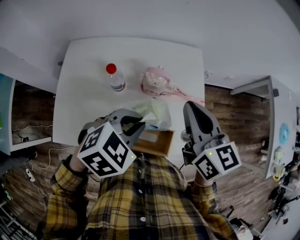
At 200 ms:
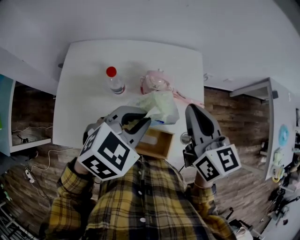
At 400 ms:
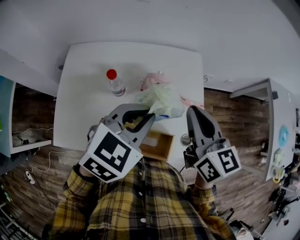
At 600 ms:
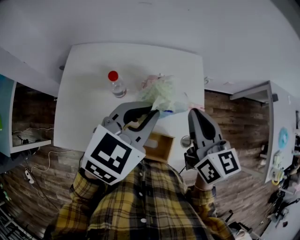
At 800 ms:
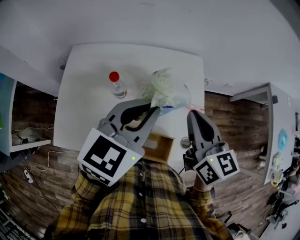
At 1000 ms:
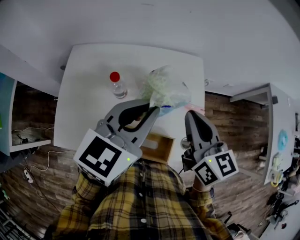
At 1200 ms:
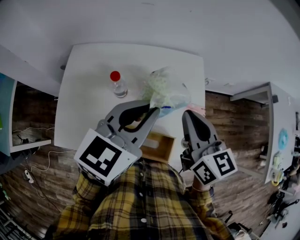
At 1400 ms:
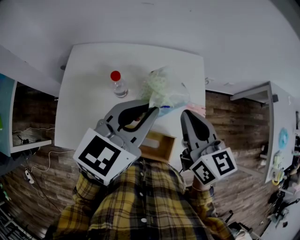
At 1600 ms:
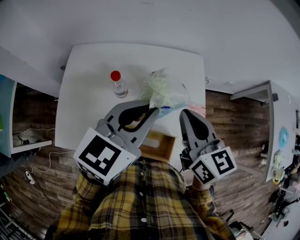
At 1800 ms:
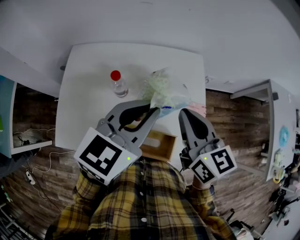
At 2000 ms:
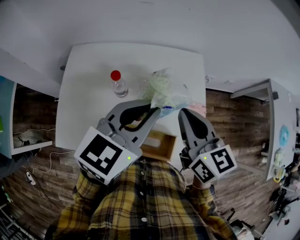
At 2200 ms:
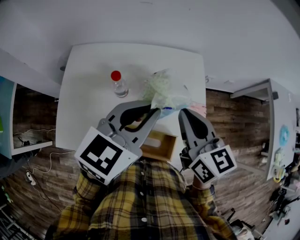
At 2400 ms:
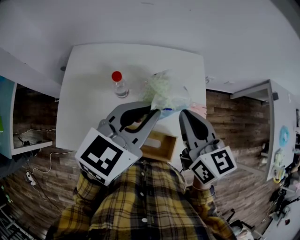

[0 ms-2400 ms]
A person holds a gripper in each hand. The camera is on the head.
0 ms to 1200 ms: The left gripper shifts approximately 10 cm upward and forward, and angles its fingers upward, by approximately 30 degrees.
1200 ms to 2400 ms: There are only small adjustments of the grippers.

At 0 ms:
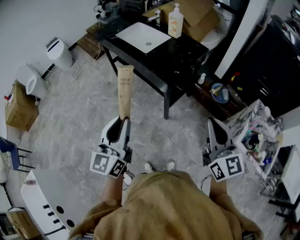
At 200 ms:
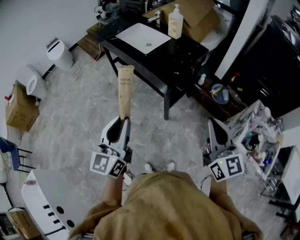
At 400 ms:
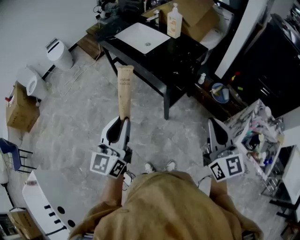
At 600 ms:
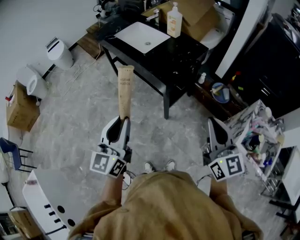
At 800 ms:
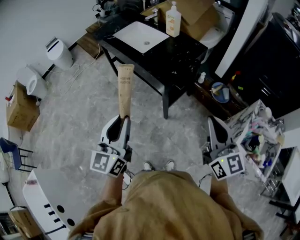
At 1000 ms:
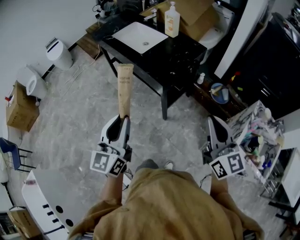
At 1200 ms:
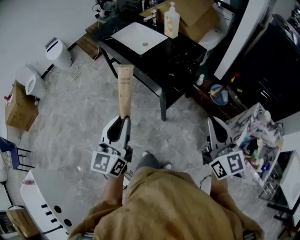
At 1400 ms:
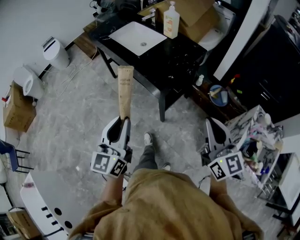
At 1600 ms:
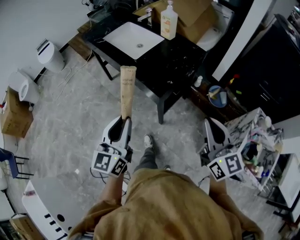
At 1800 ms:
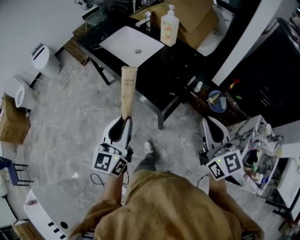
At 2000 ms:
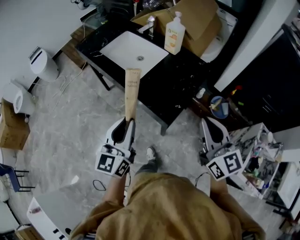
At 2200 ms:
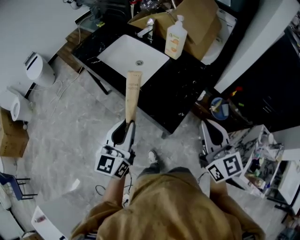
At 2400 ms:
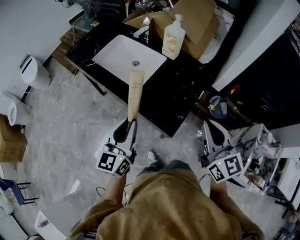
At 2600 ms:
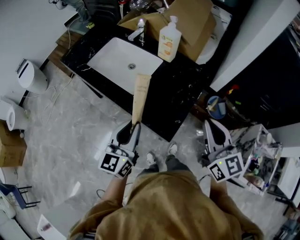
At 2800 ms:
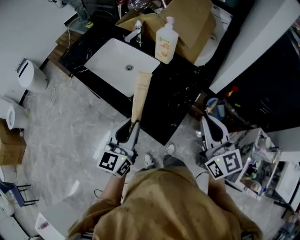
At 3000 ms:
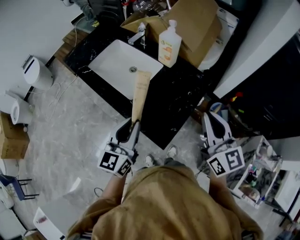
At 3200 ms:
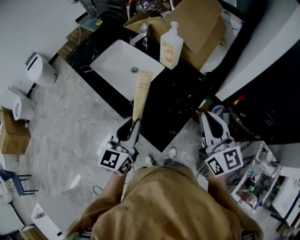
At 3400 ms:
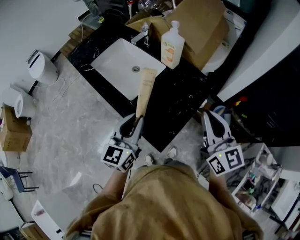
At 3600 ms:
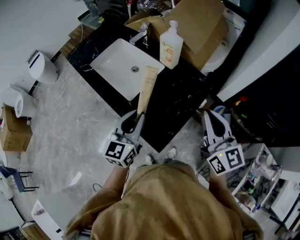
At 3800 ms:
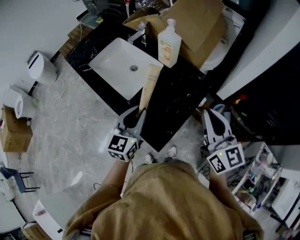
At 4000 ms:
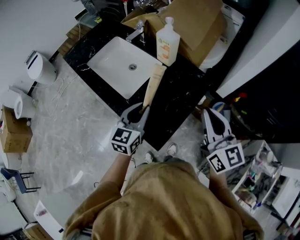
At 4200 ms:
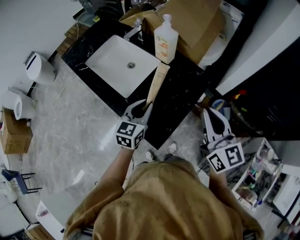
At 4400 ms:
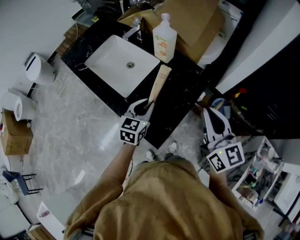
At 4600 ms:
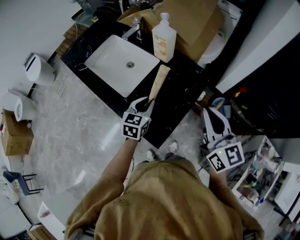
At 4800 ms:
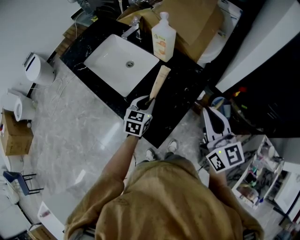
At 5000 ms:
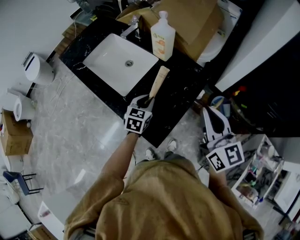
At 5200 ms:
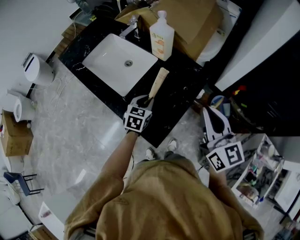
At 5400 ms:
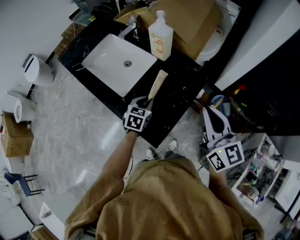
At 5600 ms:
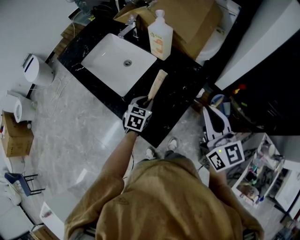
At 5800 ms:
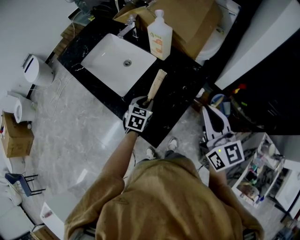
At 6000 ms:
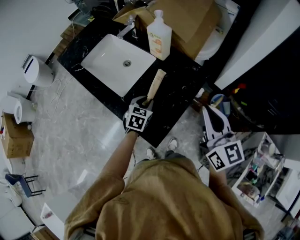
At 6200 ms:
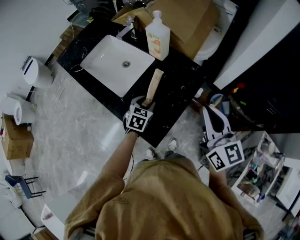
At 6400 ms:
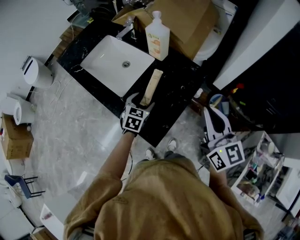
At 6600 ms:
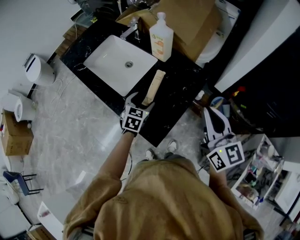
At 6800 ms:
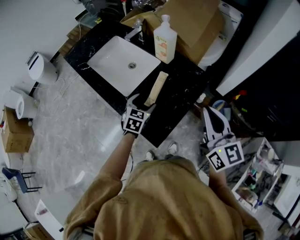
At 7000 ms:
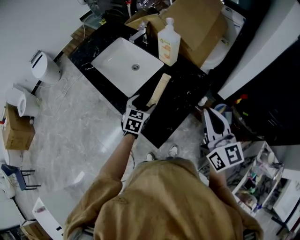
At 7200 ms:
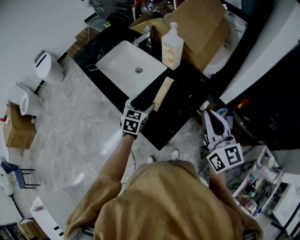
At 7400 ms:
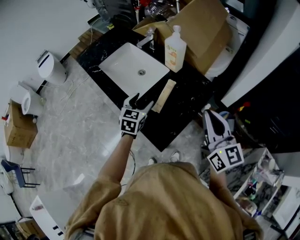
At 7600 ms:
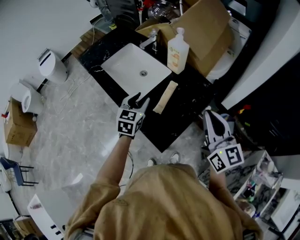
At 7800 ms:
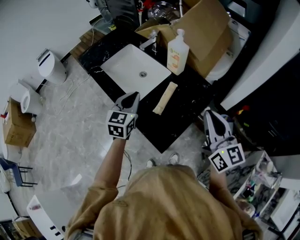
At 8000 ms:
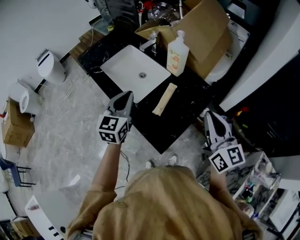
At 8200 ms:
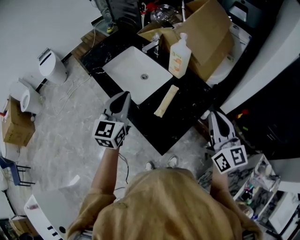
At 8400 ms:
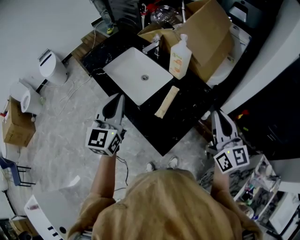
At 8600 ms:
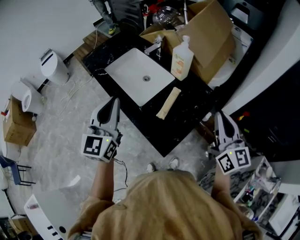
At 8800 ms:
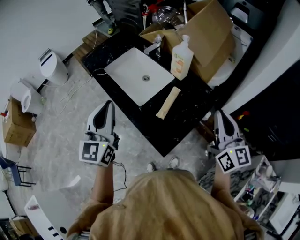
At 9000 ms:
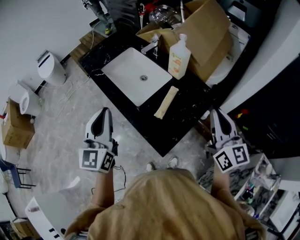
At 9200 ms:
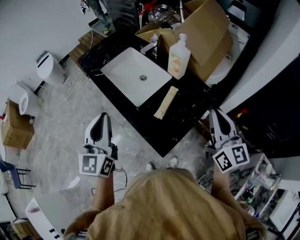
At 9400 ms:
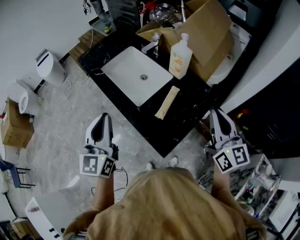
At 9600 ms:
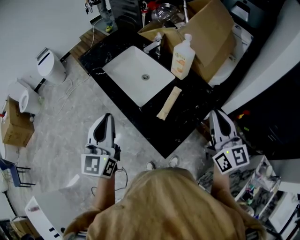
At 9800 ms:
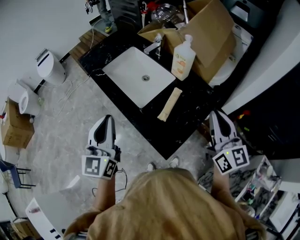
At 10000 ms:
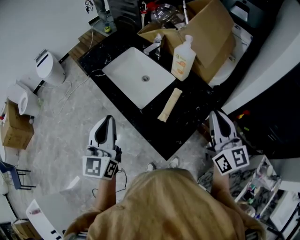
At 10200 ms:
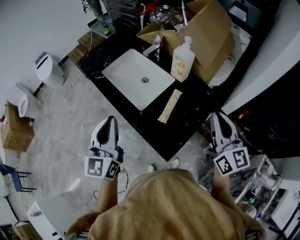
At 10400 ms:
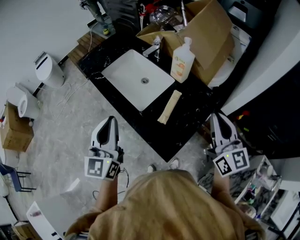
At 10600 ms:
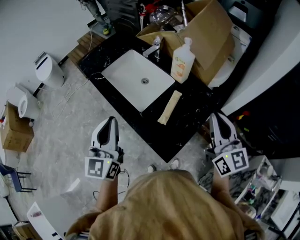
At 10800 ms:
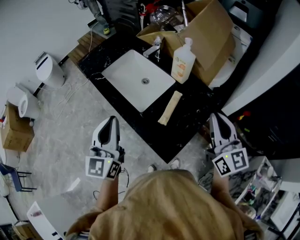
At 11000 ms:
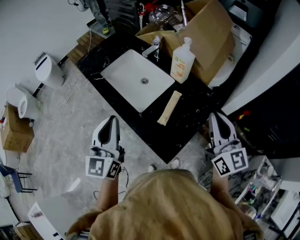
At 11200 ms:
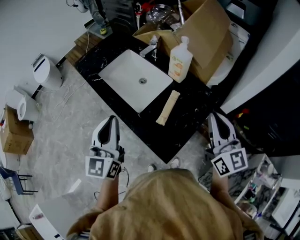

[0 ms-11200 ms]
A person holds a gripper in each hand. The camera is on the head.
0 ms to 1600 ms: The grippers both shift forward by roughly 15 cm.
1600 ms to 3200 ms: The two grippers go approximately 35 cm forward.
3200 ms to 4800 ms: The left gripper shifts about 20 cm downward, forward and to the right, and changes its angle by some 30 degrees.
4800 ms to 6400 ms: The left gripper opens.
6400 ms to 8000 ms: The left gripper travels upward and to the left by roughly 25 cm, turns by some 30 degrees, and closes up. Meanwhile the right gripper shifts by about 5 cm.
8000 ms to 9600 ms: The left gripper is displaced to the left, backward and upward by about 15 cm.
9600 ms to 11200 ms: The grippers stay close to where they were, moving slightly.

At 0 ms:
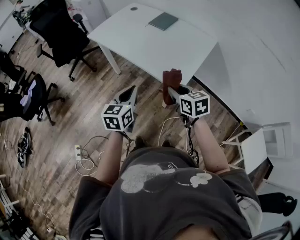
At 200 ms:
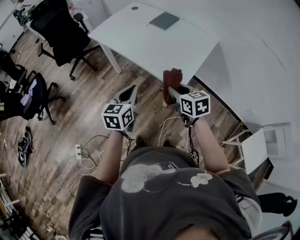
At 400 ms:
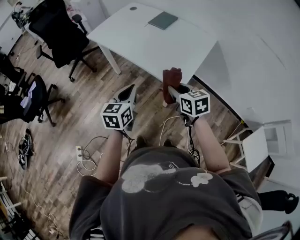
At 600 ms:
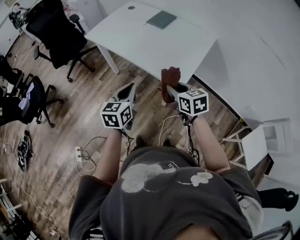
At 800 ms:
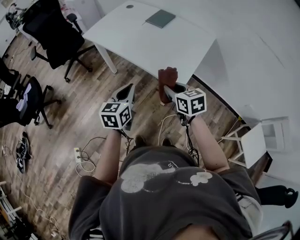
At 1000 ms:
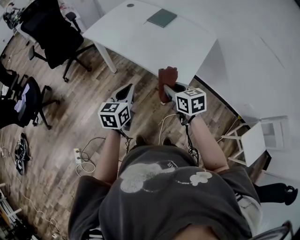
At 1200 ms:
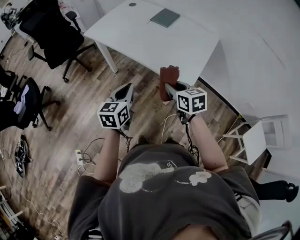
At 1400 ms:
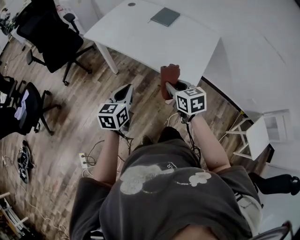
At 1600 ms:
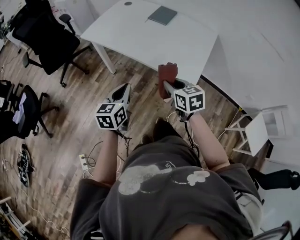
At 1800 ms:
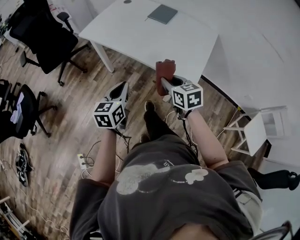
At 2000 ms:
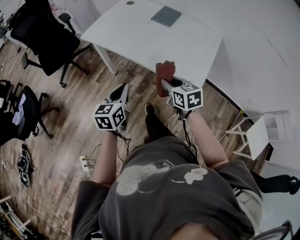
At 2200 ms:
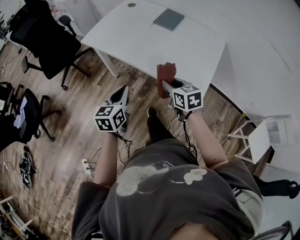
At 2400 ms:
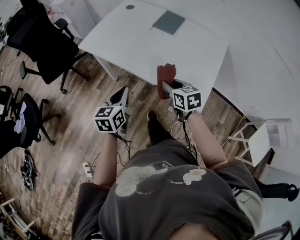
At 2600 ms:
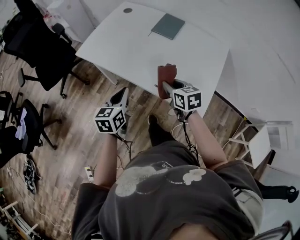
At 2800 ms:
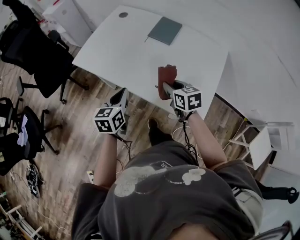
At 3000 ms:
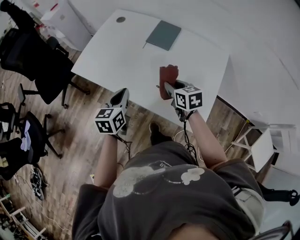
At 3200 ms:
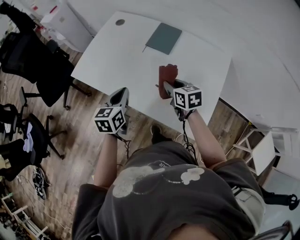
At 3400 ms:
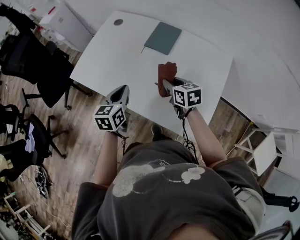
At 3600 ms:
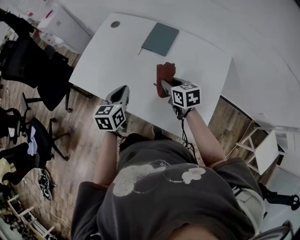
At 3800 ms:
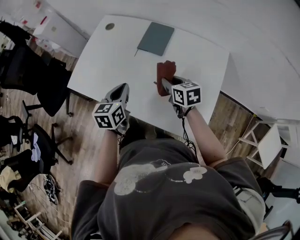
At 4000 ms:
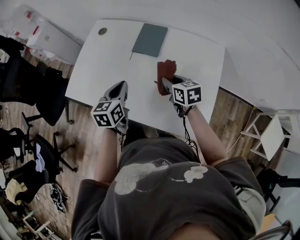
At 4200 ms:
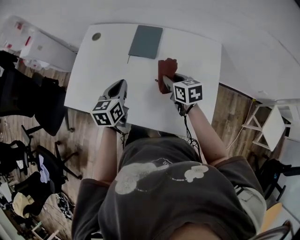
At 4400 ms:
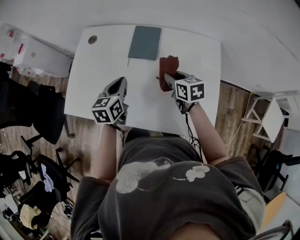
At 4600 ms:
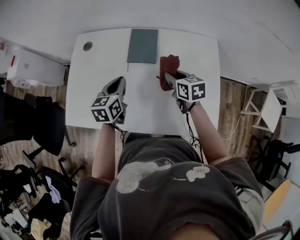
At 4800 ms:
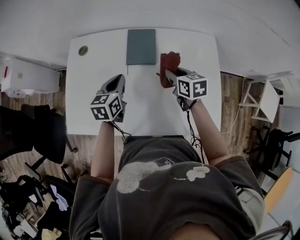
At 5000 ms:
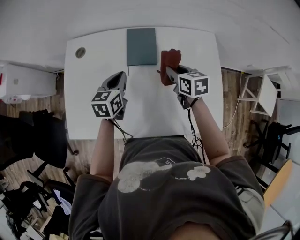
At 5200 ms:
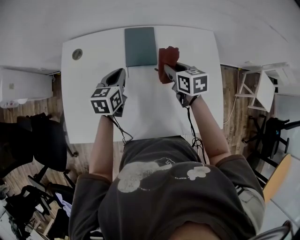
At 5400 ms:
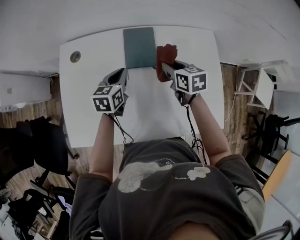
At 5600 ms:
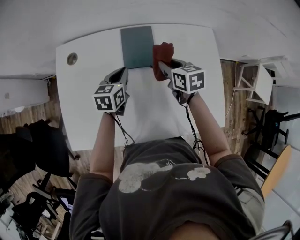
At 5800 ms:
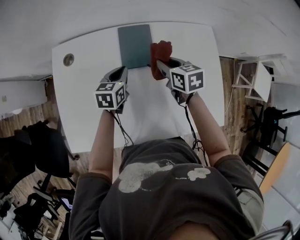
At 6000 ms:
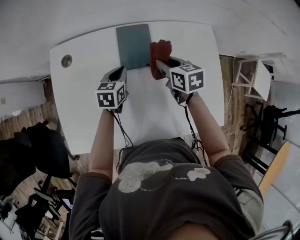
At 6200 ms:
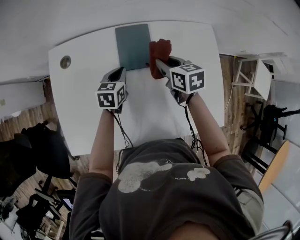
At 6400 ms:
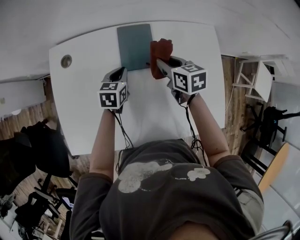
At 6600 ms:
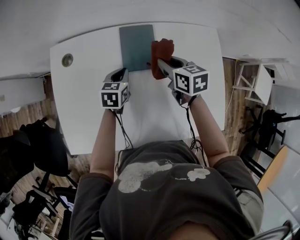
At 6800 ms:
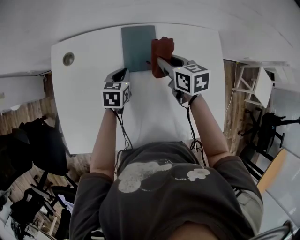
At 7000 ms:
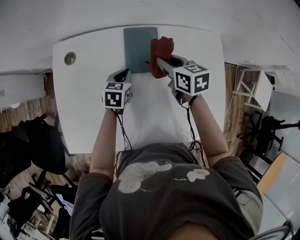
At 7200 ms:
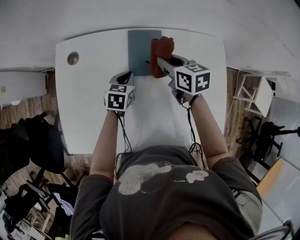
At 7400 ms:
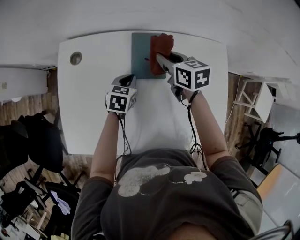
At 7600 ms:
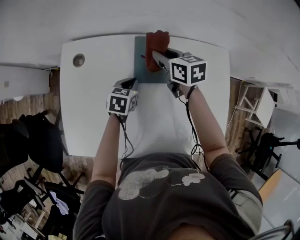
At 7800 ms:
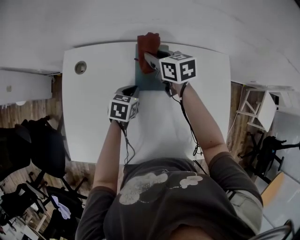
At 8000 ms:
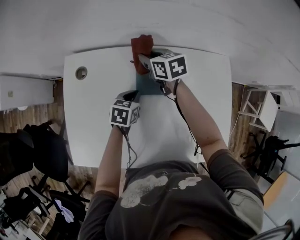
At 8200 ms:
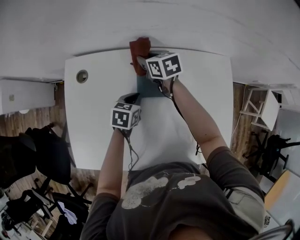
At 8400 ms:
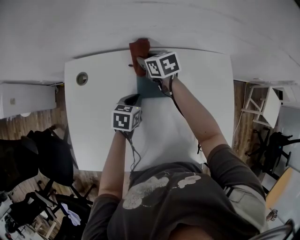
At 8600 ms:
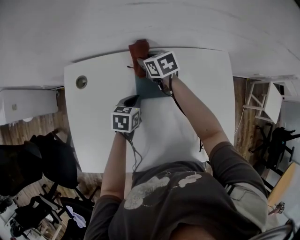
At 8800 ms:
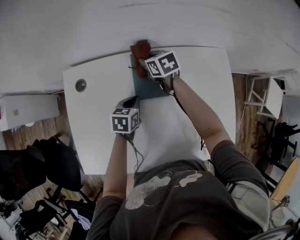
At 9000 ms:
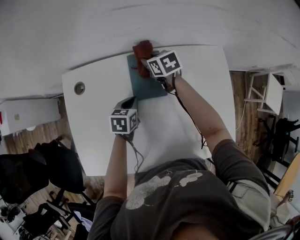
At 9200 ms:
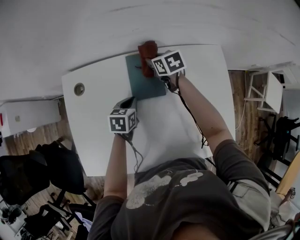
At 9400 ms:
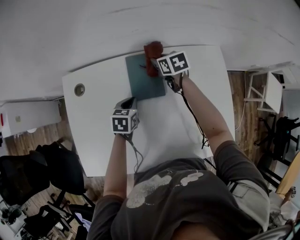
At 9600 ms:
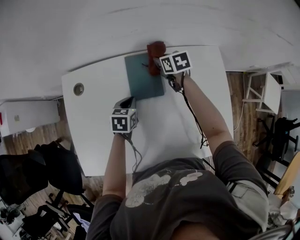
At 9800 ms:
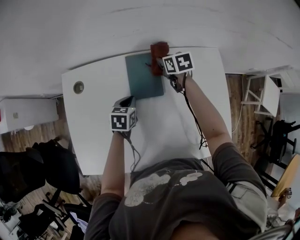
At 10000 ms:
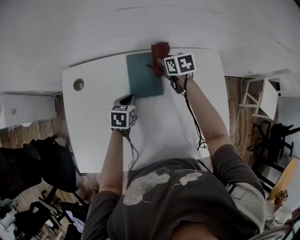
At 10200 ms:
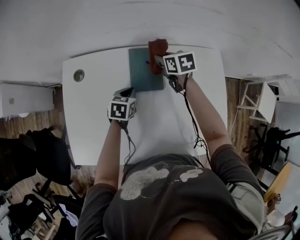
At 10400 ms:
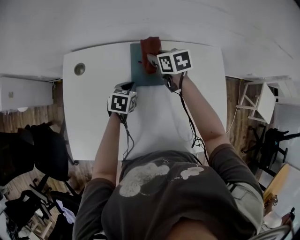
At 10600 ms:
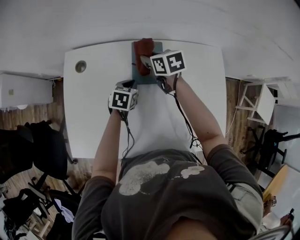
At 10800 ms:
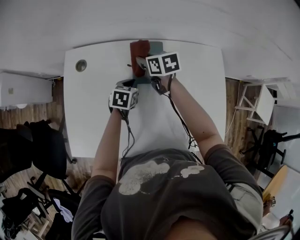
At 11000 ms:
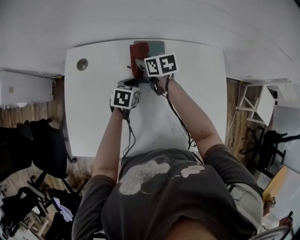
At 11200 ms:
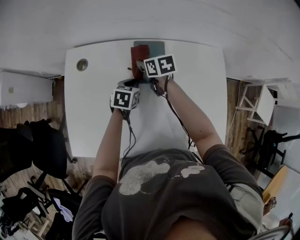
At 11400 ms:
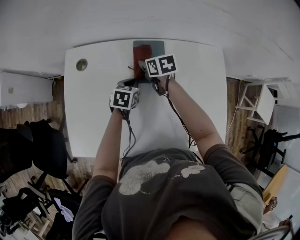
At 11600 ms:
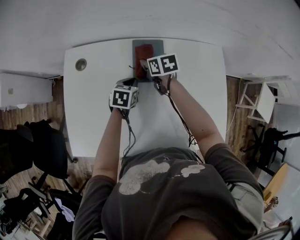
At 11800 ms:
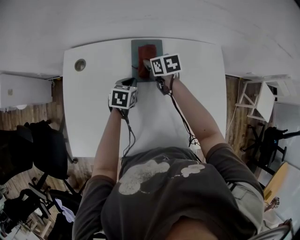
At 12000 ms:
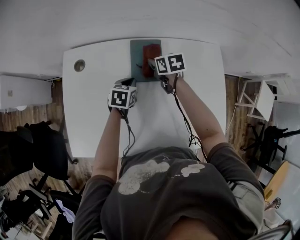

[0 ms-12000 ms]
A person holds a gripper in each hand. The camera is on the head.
0 ms to 1600 ms: The two grippers go approximately 15 cm to the left and forward.
1600 ms to 3000 ms: Both grippers travel together forward, roughly 30 cm.
3000 ms to 4400 ms: The left gripper travels forward by some 20 cm; the right gripper is displaced forward and to the right by approximately 15 cm.
4400 ms to 6000 ms: The right gripper heads forward and to the left, covering about 15 cm. Meanwhile the left gripper is displaced forward and downward by some 20 cm, and swivels about 30 degrees.
6000 ms to 7600 ms: The right gripper travels forward and to the left by roughly 15 cm.
7600 ms to 9000 ms: The right gripper travels downward and forward by roughly 10 cm.
9000 ms to 10400 ms: The right gripper travels backward by about 5 cm, and moves about 10 cm to the right and comes back.
10400 ms to 12000 ms: The right gripper moves downward, approximately 5 cm.
